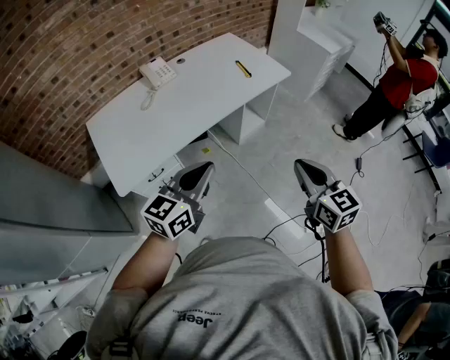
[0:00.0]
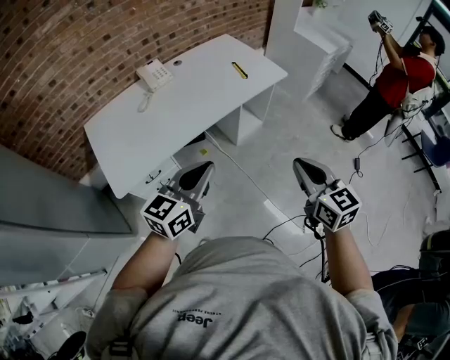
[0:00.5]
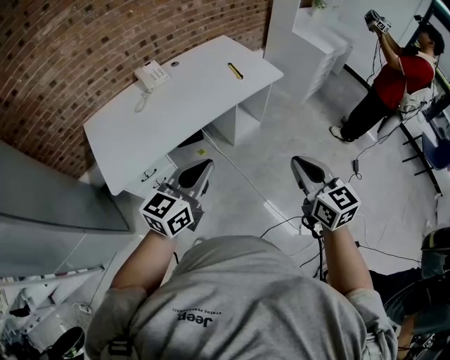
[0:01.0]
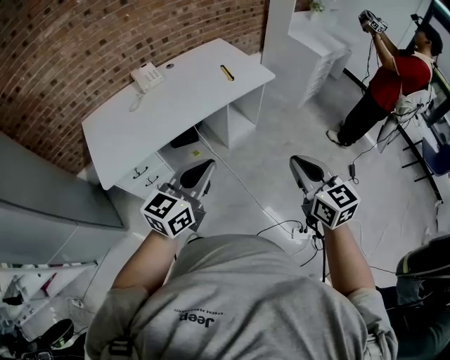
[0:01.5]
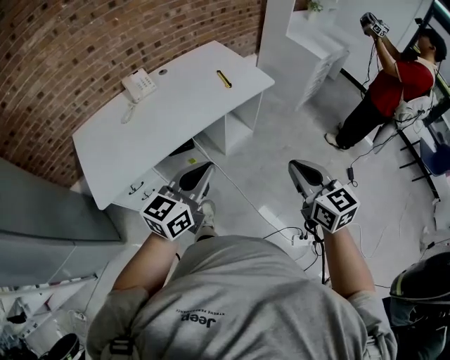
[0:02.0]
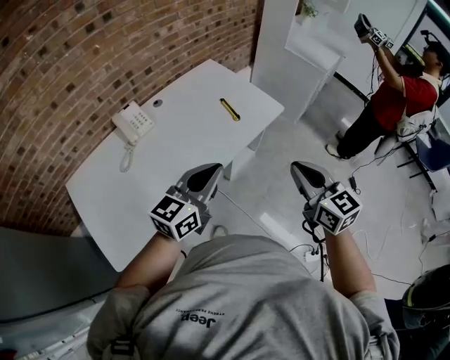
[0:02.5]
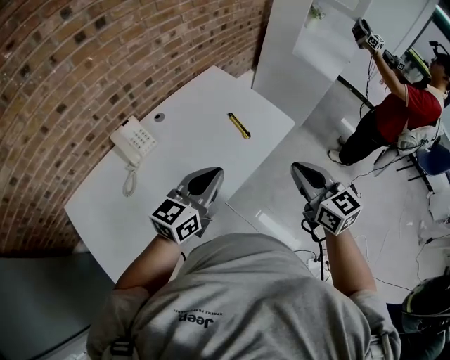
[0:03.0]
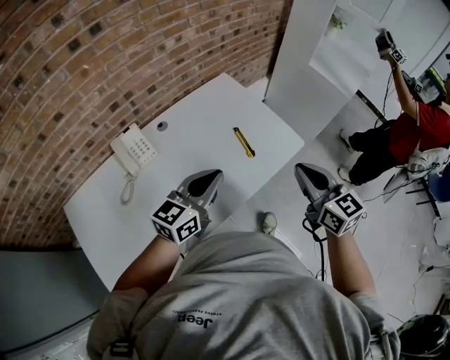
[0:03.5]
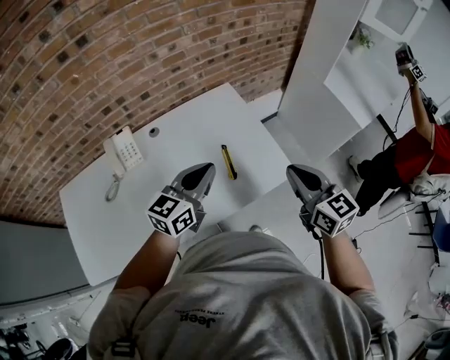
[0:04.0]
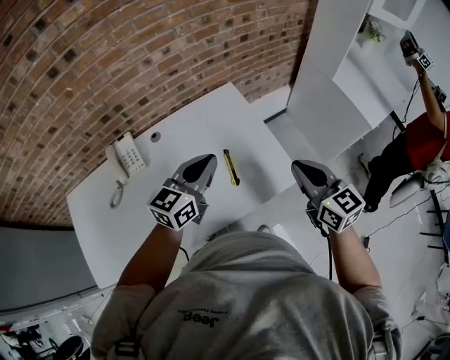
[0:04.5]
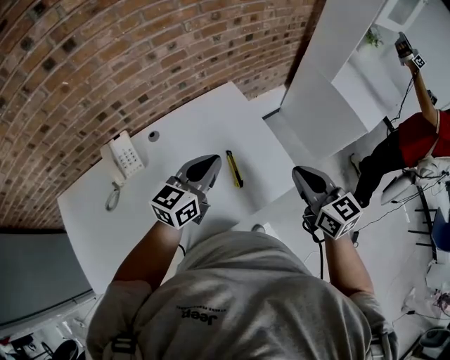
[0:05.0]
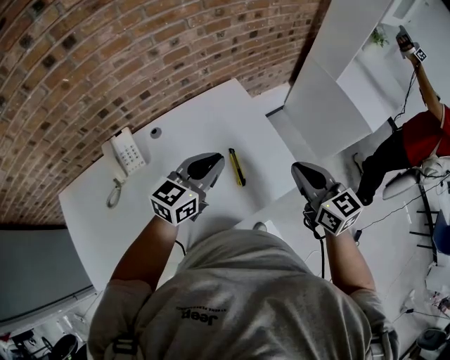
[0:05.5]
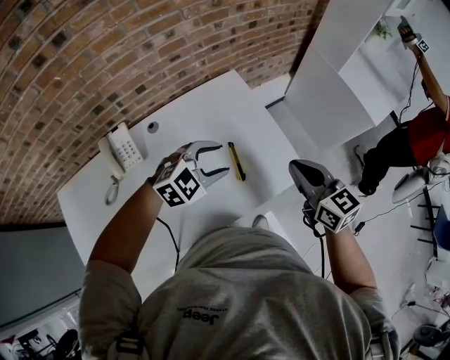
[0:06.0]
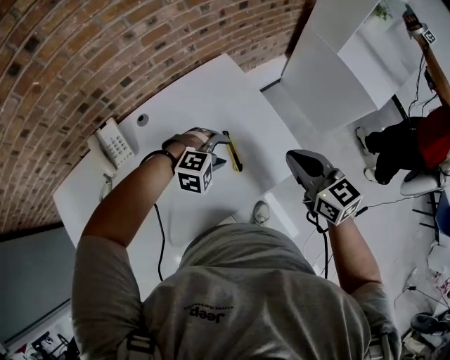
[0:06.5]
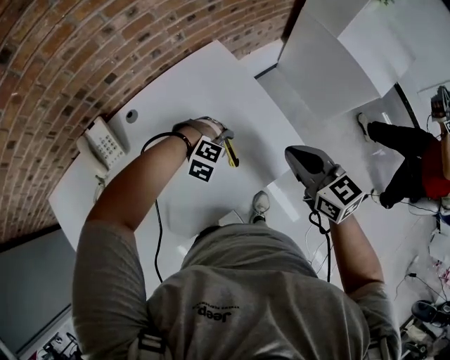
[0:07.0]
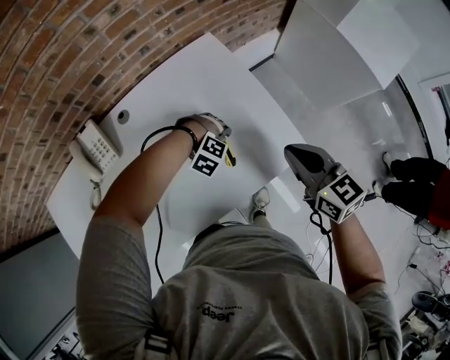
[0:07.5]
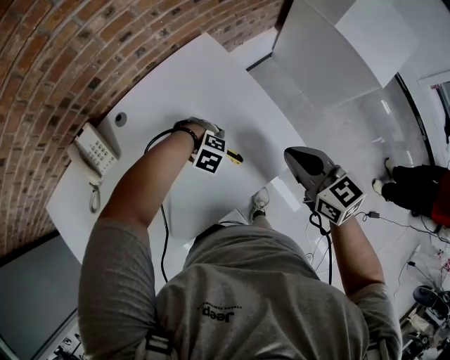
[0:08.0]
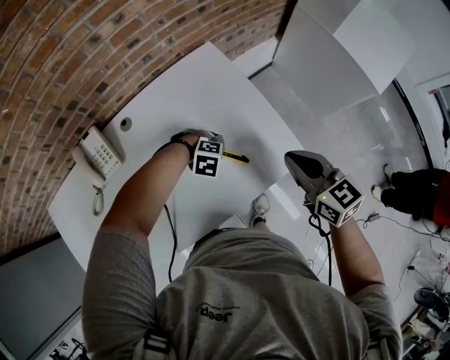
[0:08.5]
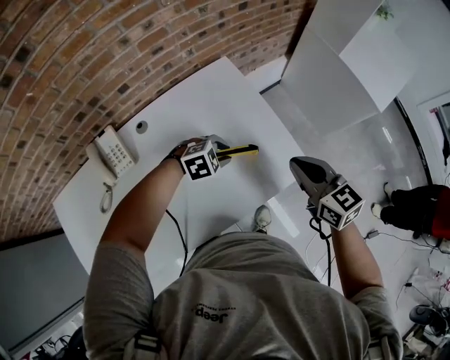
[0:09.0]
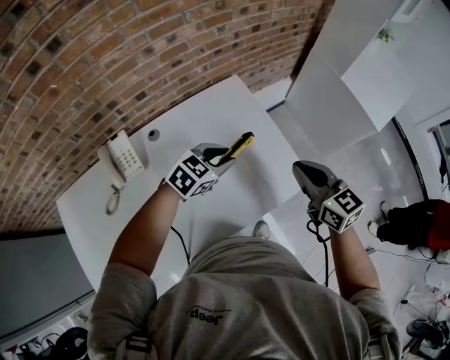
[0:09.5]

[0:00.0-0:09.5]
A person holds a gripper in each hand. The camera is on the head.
0:00.0 to 0:02.0: The two grippers go some 10 cm to the right and forward.
0:02.0 to 0:04.0: The pair of grippers is taken forward, some 50 cm.
0:04.0 to 0:05.5: The grippers both shift forward by about 5 cm.
0:05.5 to 0:07.5: The right gripper goes some 10 cm downward, while the left gripper heads downward, covering approximately 30 cm, tilts its fingers approximately 70 degrees downward, and opens.
0:07.5 to 0:09.5: The right gripper travels upward by some 5 cm. Meanwhile the left gripper heads upward, covering roughly 20 cm, twists about 70 degrees counterclockwise, seen from behind, and closes.

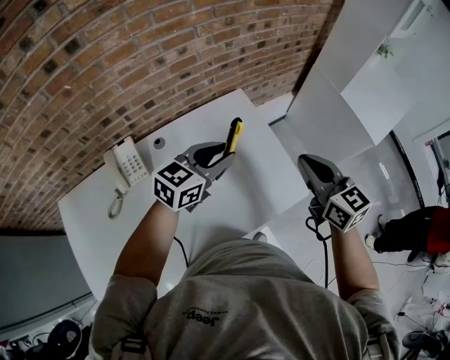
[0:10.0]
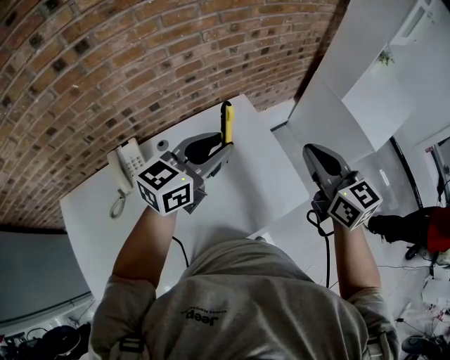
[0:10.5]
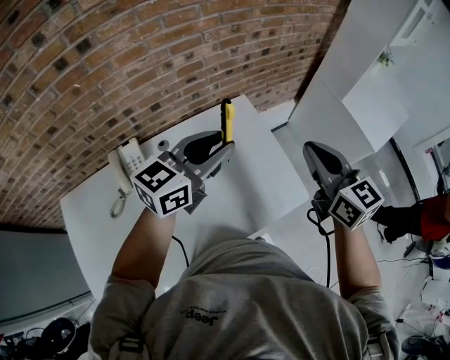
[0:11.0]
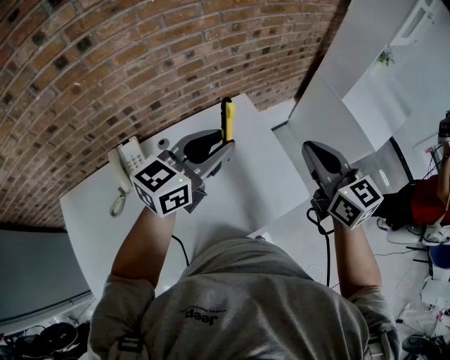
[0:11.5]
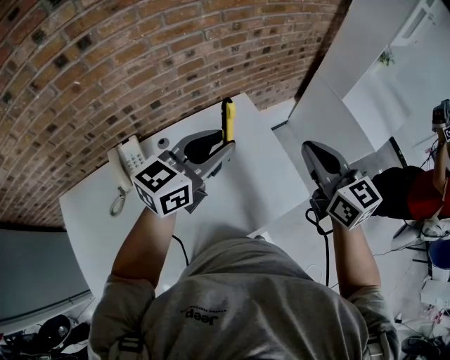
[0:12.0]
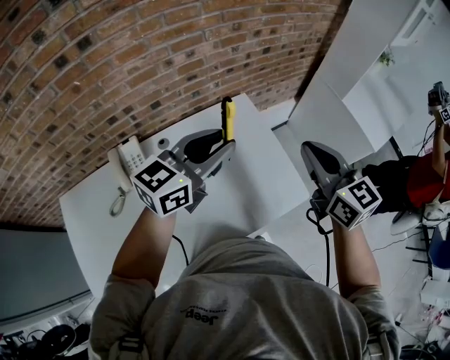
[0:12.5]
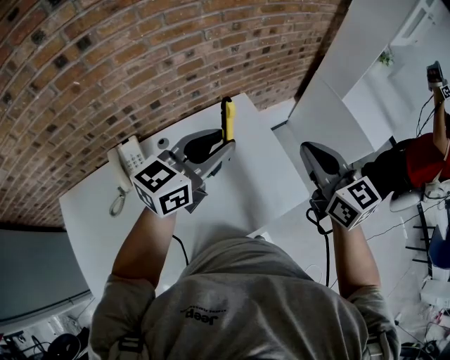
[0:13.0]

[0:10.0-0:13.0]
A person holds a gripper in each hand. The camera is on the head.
0:10.0 to 0:11.5: The left gripper travels upward by roughly 10 cm. The right gripper travels upward by approximately 5 cm.
0:11.5 to 0:13.0: The two grippers keep their place.

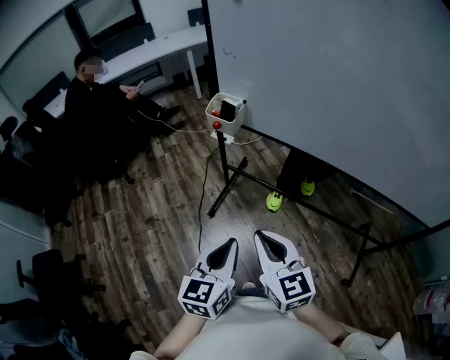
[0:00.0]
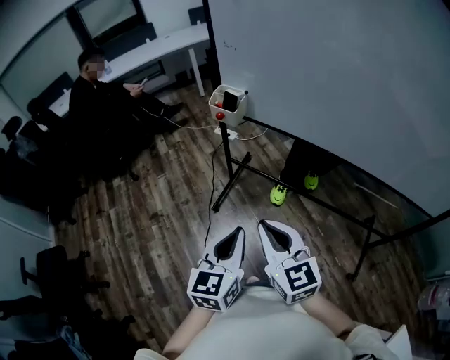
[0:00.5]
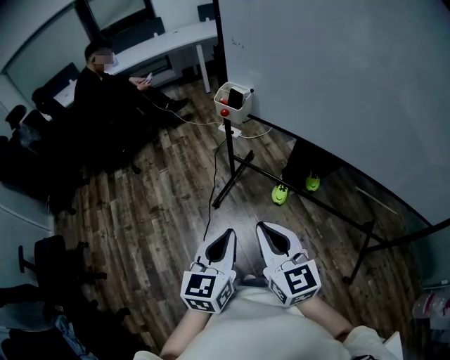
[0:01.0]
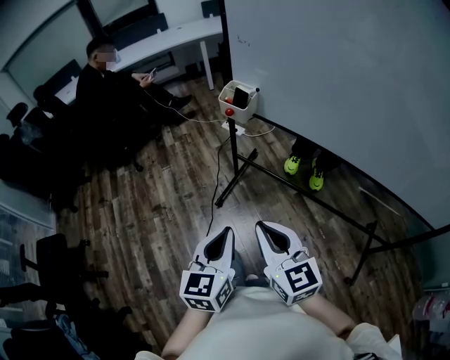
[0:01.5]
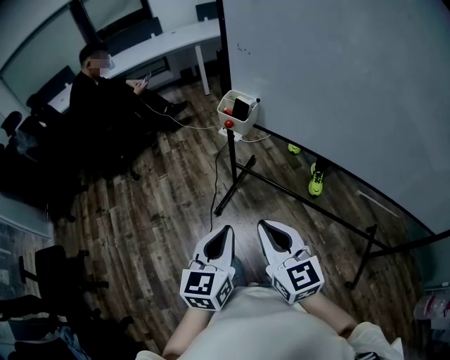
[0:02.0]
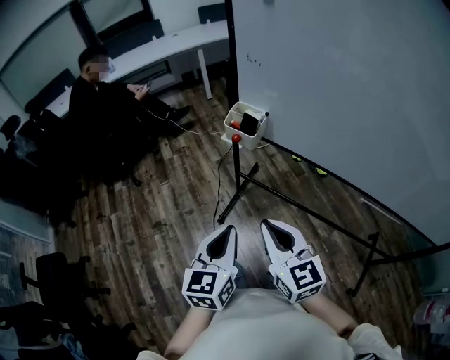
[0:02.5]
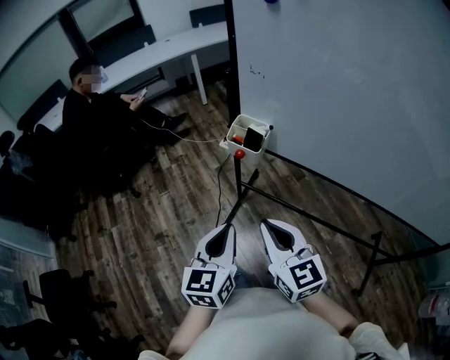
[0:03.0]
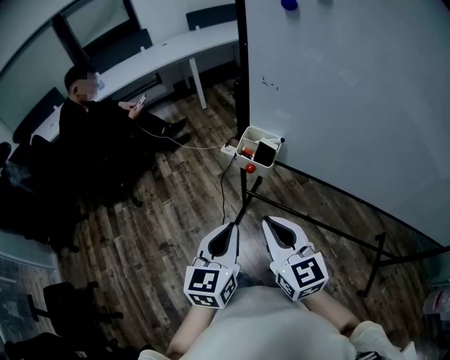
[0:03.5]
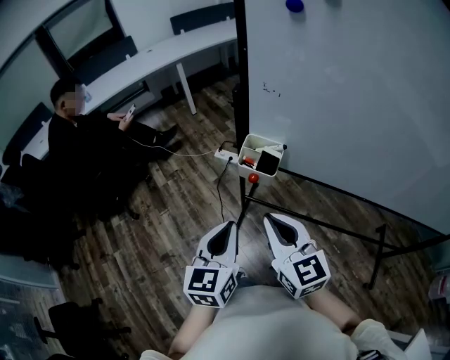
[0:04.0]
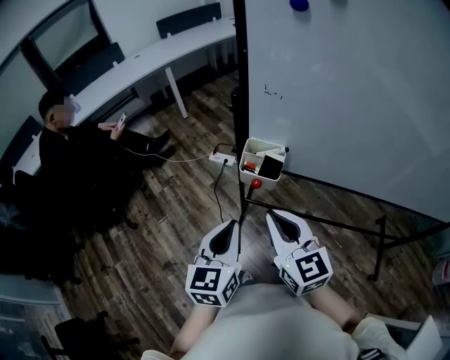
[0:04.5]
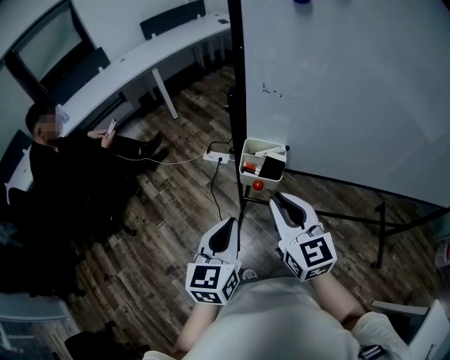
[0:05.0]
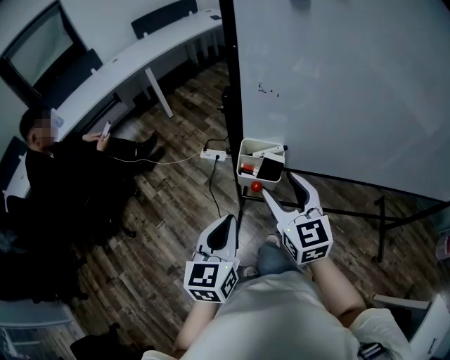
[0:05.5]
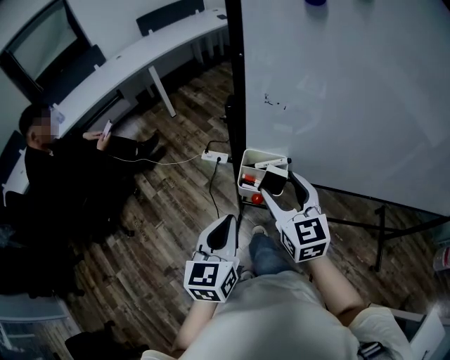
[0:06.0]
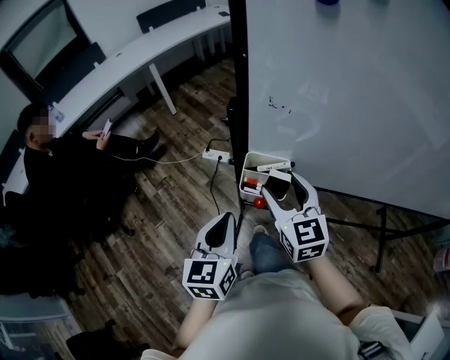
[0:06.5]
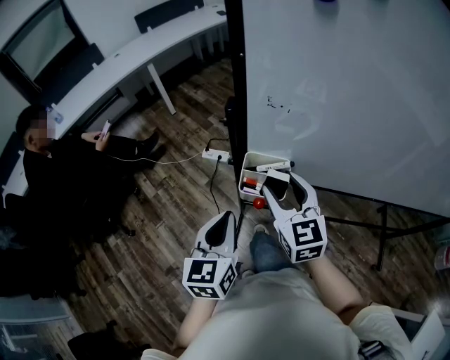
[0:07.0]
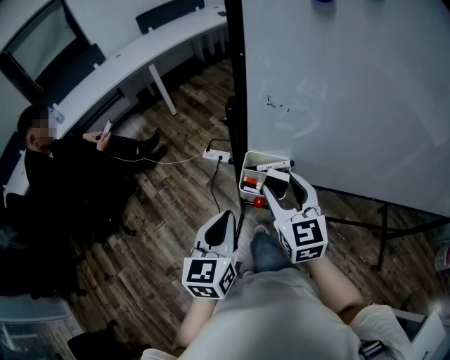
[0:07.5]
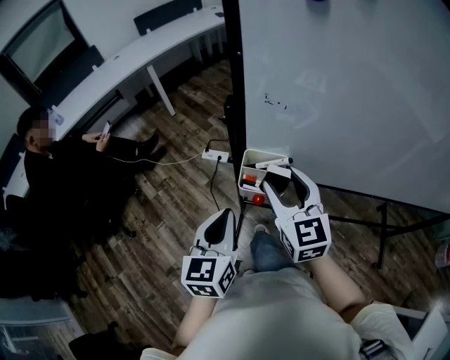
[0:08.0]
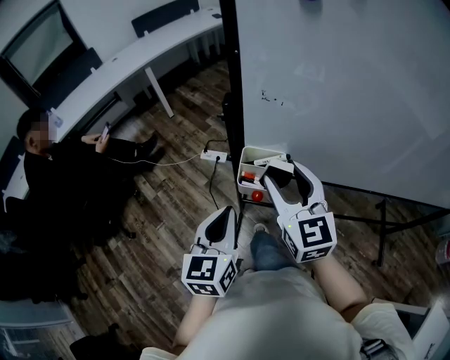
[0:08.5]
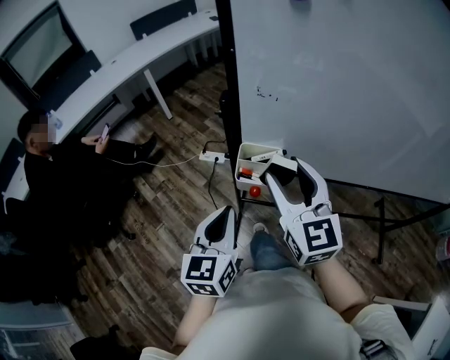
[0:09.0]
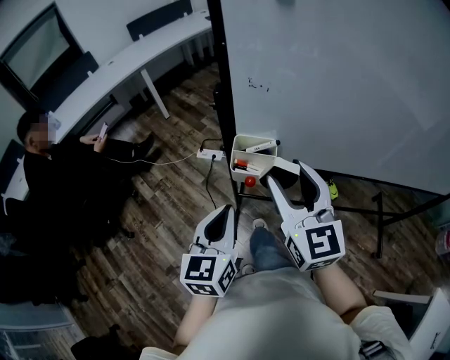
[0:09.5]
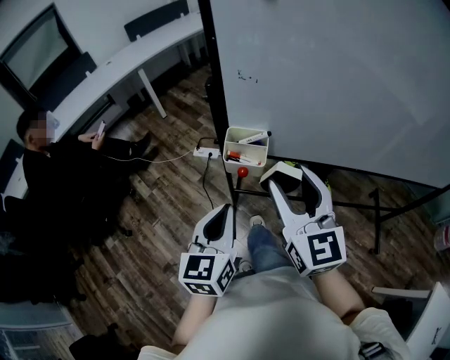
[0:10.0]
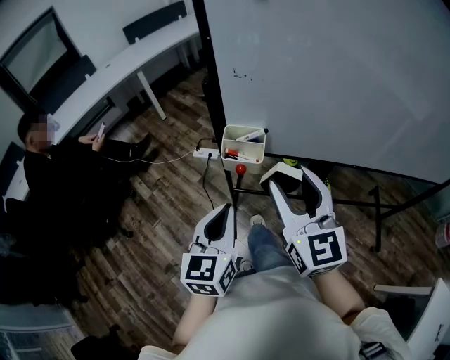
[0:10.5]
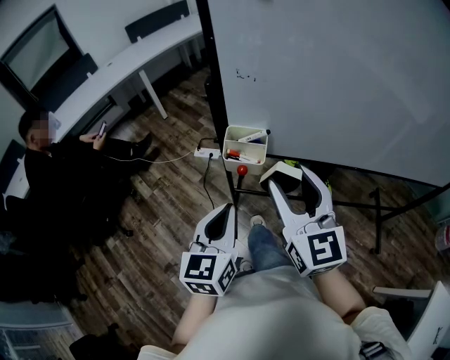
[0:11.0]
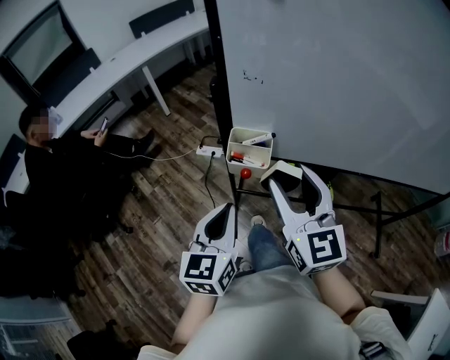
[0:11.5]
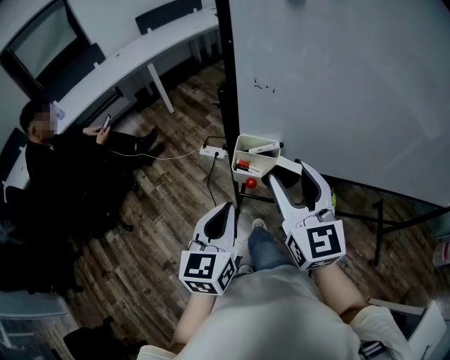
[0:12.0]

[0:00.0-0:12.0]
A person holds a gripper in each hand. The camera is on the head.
0:00.0 to 0:02.0: The left gripper moves forward, about 5 cm.
0:02.0 to 0:04.0: Both grippers move forward, about 20 cm.
0:04.0 to 0:06.0: The left gripper moves forward, about 10 cm. The right gripper moves forward, roughly 15 cm, and opens its fingers.
0:06.0 to 0:08.0: The grippers move only a little.
0:08.0 to 0:10.0: The left gripper travels backward by about 10 cm. Meanwhile the right gripper heads backward and upward, covering about 15 cm.
0:10.0 to 0:12.0: The right gripper shifts approximately 5 cm forward.

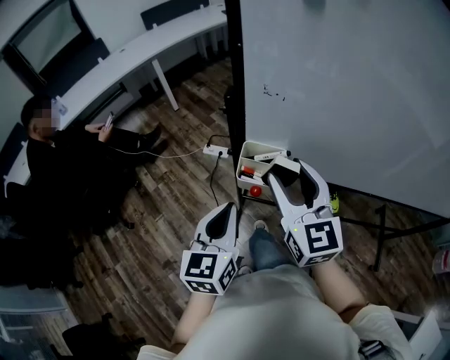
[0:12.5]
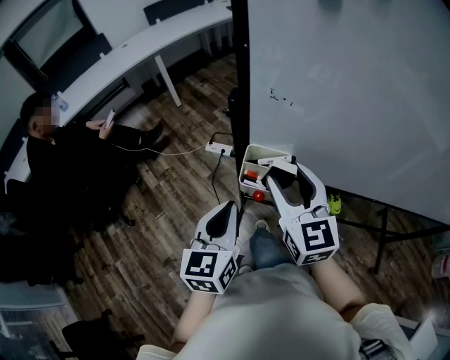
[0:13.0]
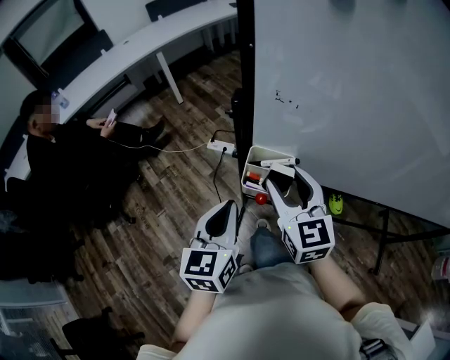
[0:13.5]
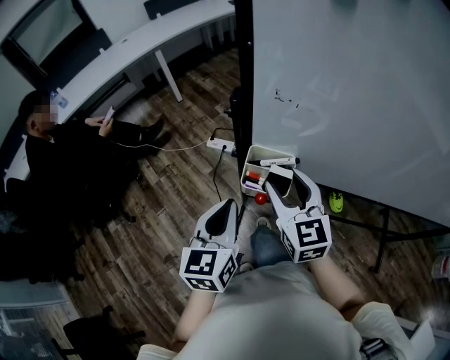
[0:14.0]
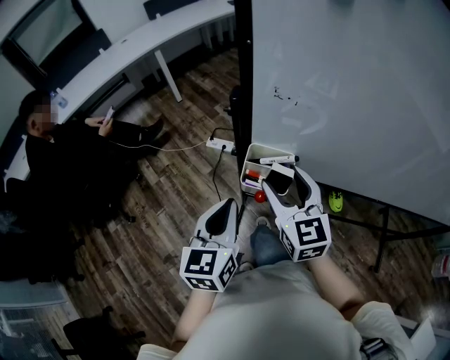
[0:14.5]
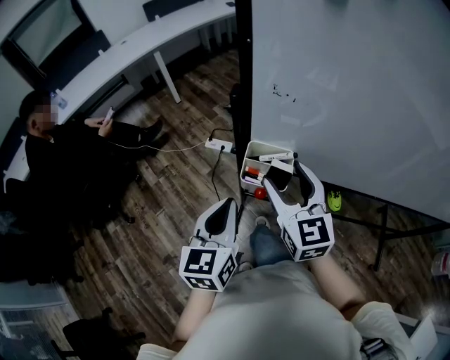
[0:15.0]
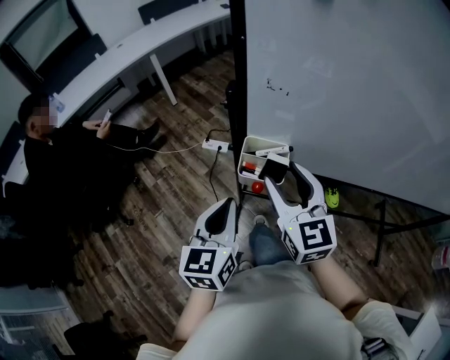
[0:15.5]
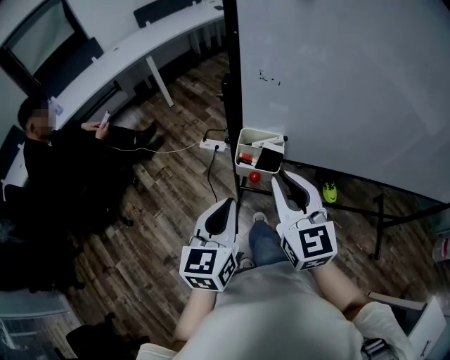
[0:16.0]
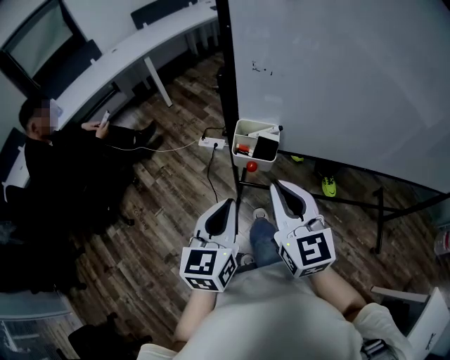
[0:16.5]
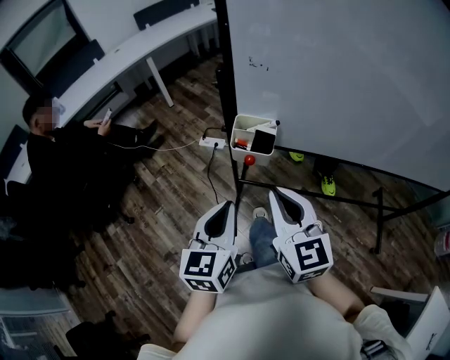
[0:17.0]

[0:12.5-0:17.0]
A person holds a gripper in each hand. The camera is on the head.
0:12.5 to 0:14.5: The right gripper goes some 5 cm downward.
0:14.5 to 0:17.0: Both grippers move backward, about 15 cm. The right gripper closes.
